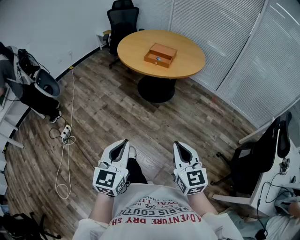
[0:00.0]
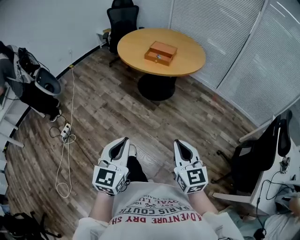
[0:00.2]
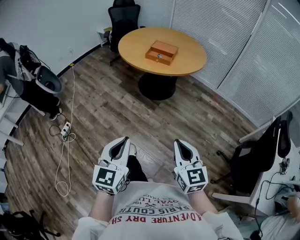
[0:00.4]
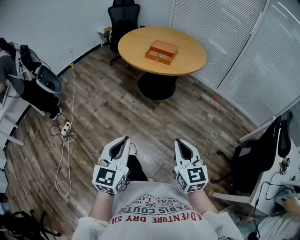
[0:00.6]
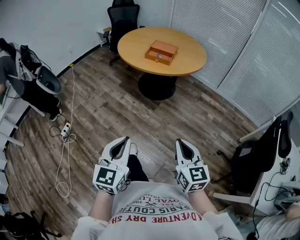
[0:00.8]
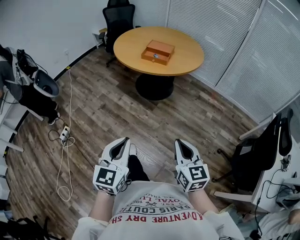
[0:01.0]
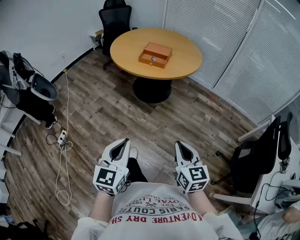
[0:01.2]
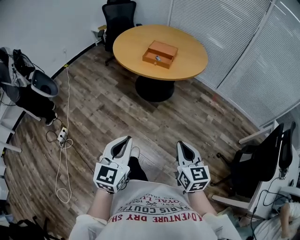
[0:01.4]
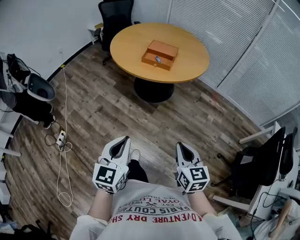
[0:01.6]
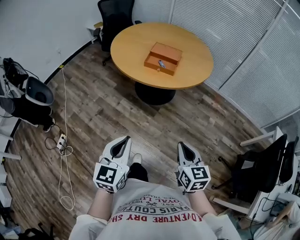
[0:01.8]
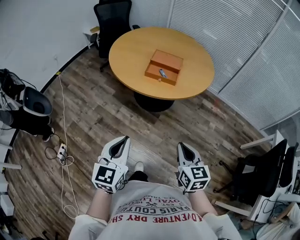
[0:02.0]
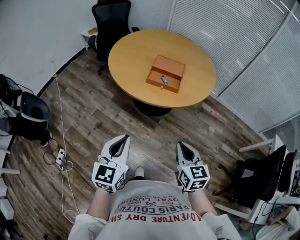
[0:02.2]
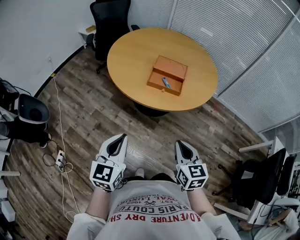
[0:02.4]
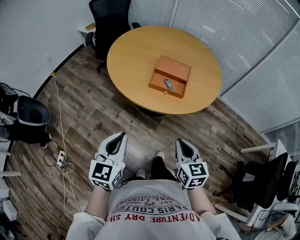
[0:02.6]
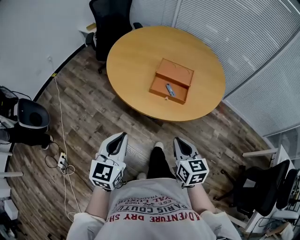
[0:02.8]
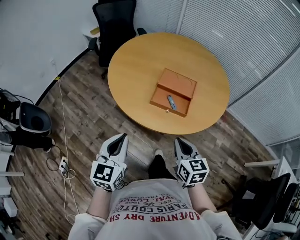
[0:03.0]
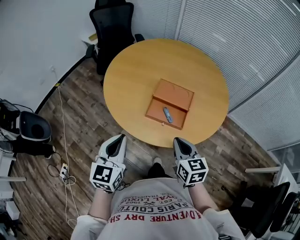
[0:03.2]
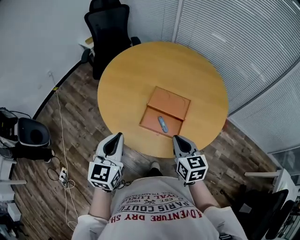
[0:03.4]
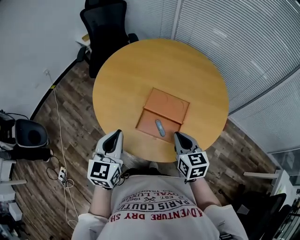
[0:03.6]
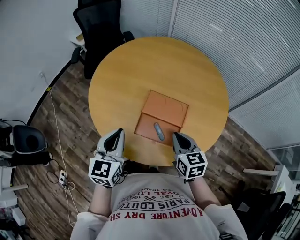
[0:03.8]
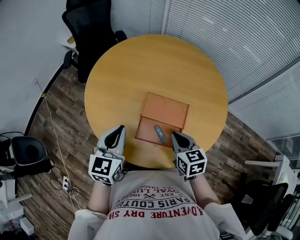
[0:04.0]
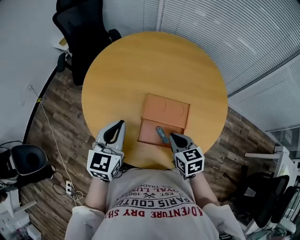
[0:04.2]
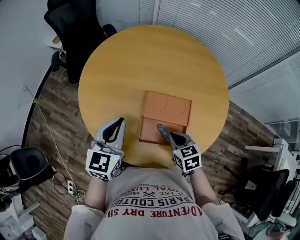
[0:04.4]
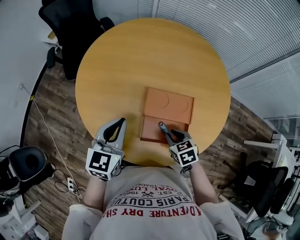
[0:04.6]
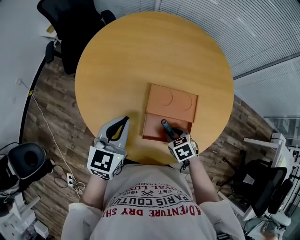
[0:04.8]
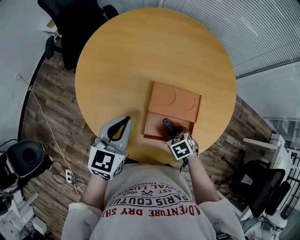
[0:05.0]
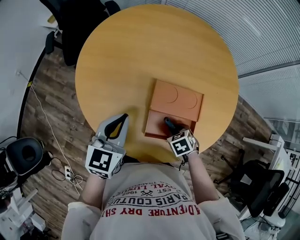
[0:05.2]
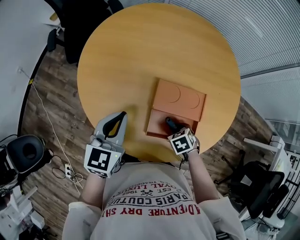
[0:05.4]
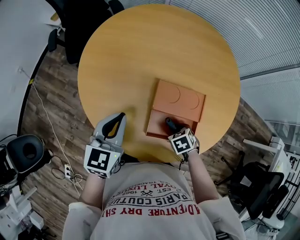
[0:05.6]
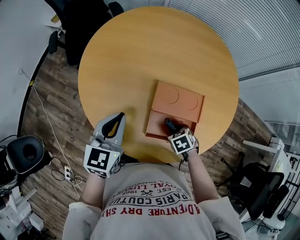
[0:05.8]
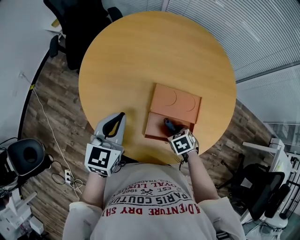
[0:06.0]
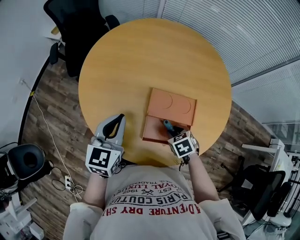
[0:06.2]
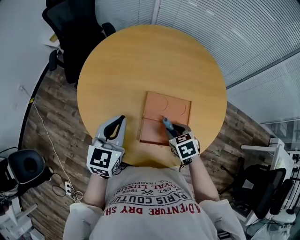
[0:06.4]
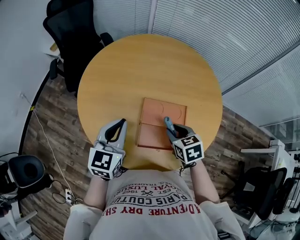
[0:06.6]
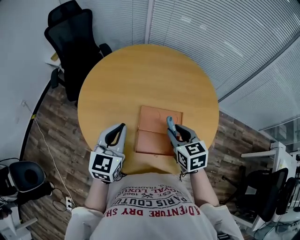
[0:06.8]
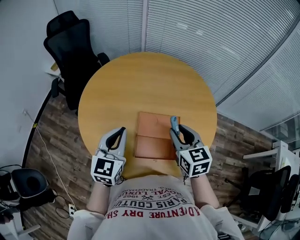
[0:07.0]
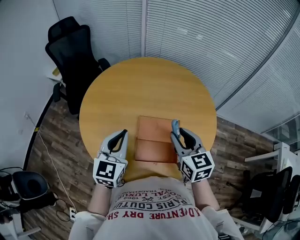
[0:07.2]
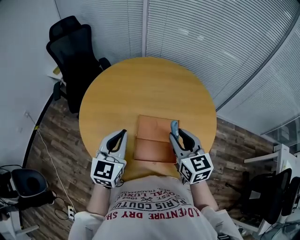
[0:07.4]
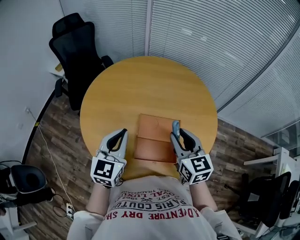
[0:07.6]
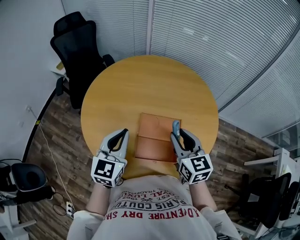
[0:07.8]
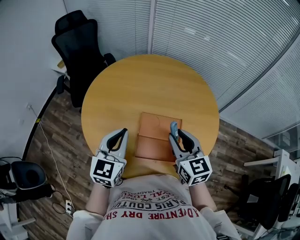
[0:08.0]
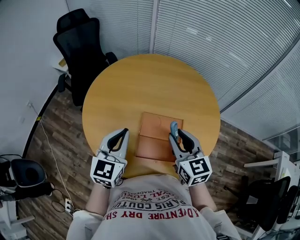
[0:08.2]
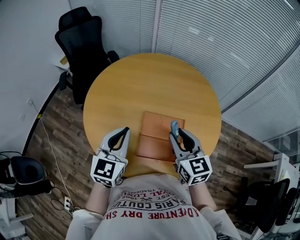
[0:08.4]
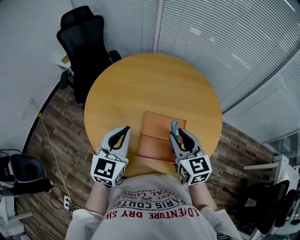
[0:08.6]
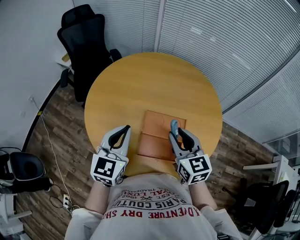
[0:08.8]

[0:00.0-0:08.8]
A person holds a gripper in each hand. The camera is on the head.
0:00.0 to 0:01.4: The two grippers go about 10 cm forward.
0:01.4 to 0:03.0: The two grippers travel together, forward, approximately 50 cm.
0:03.0 to 0:04.4: The two grippers go approximately 30 cm forward. The right gripper swivels approximately 20 degrees.
0:04.4 to 0:05.8: The left gripper shifts by roughly 5 cm, while the right gripper shifts approximately 15 cm downward, turns by roughly 30 degrees, and opens up.
0:05.8 to 0:07.4: The left gripper shifts some 10 cm upward, while the right gripper goes roughly 30 cm upward, and tips its fingers upward by roughly 60 degrees.
0:07.4 to 0:08.8: The grippers stay close to where they were, moving slightly.

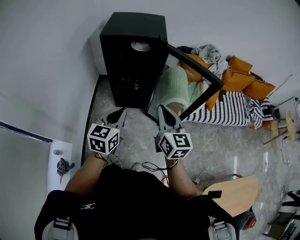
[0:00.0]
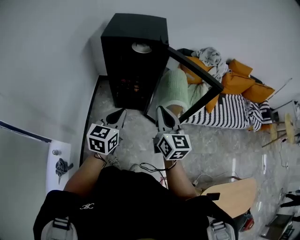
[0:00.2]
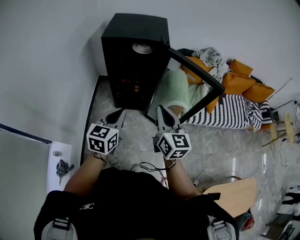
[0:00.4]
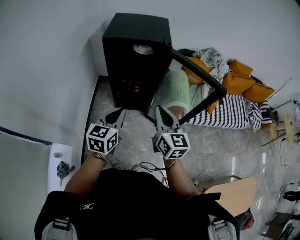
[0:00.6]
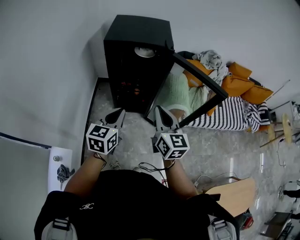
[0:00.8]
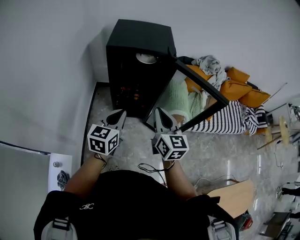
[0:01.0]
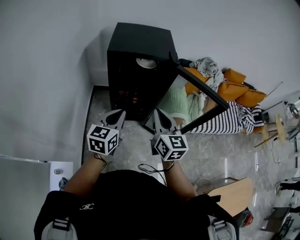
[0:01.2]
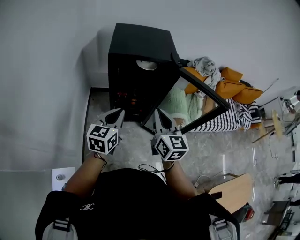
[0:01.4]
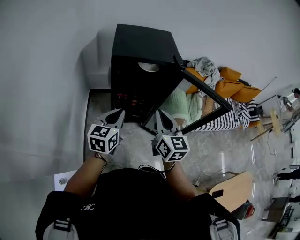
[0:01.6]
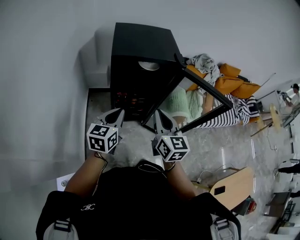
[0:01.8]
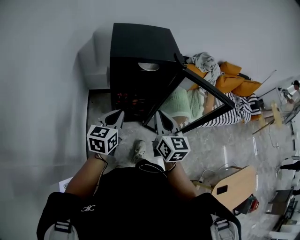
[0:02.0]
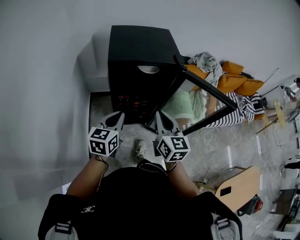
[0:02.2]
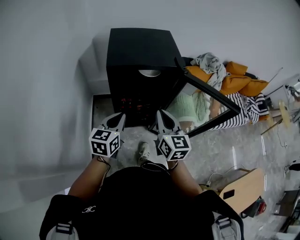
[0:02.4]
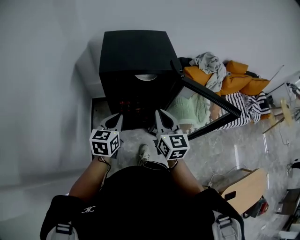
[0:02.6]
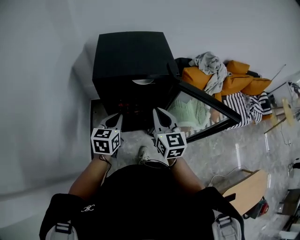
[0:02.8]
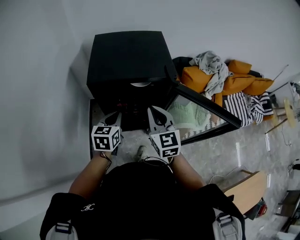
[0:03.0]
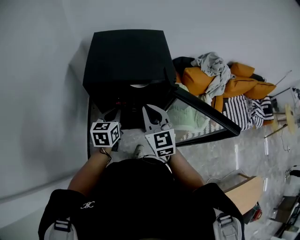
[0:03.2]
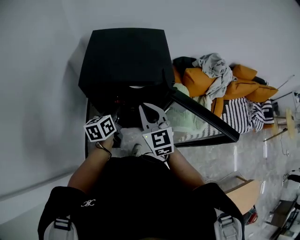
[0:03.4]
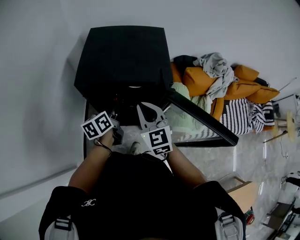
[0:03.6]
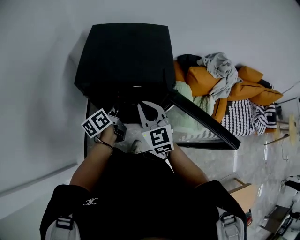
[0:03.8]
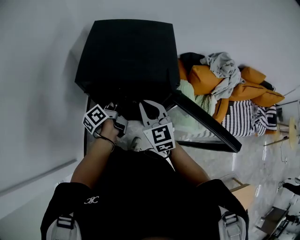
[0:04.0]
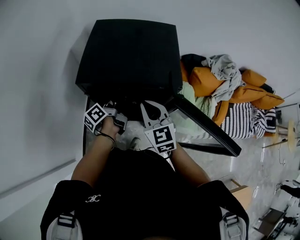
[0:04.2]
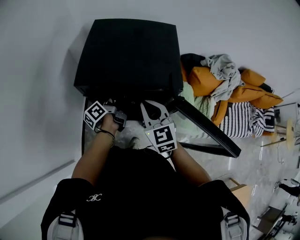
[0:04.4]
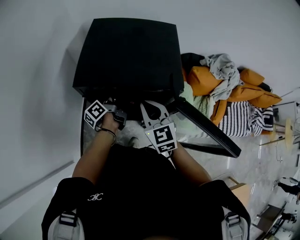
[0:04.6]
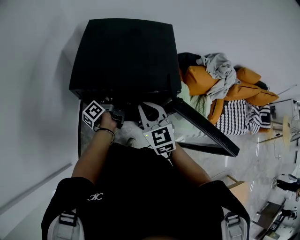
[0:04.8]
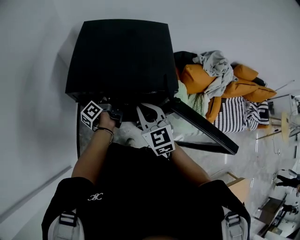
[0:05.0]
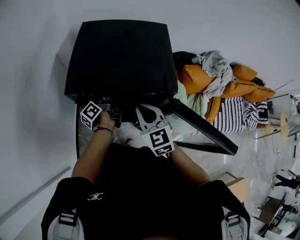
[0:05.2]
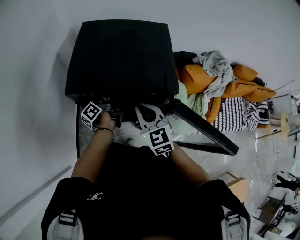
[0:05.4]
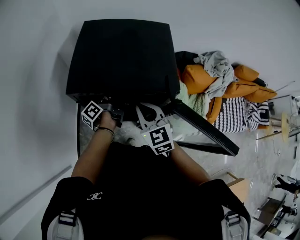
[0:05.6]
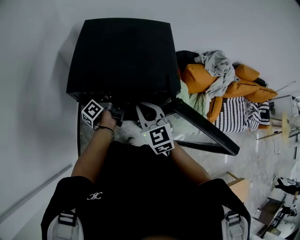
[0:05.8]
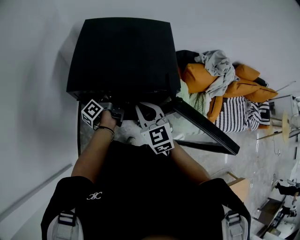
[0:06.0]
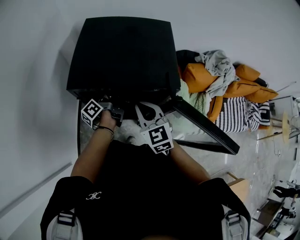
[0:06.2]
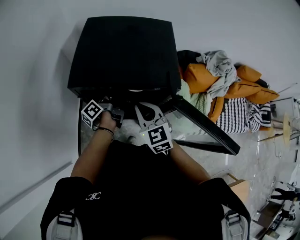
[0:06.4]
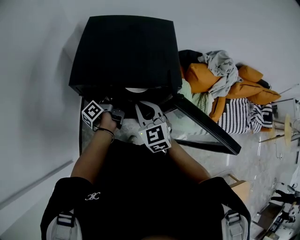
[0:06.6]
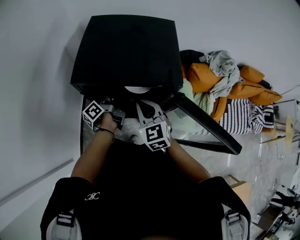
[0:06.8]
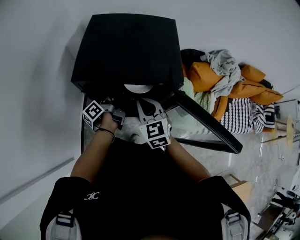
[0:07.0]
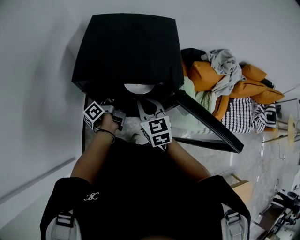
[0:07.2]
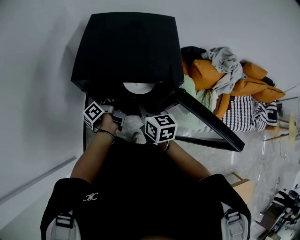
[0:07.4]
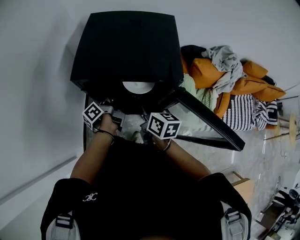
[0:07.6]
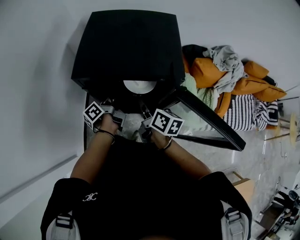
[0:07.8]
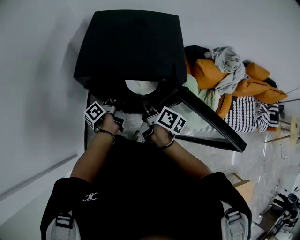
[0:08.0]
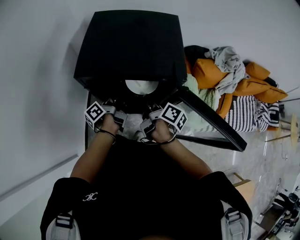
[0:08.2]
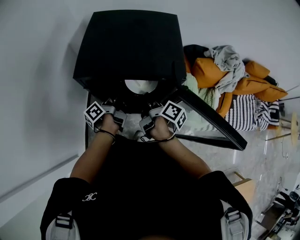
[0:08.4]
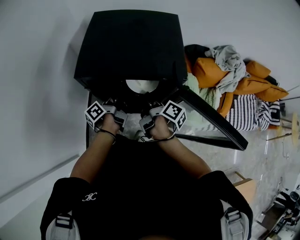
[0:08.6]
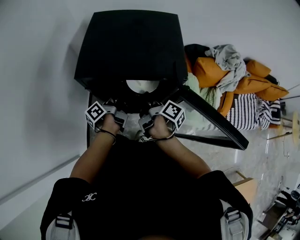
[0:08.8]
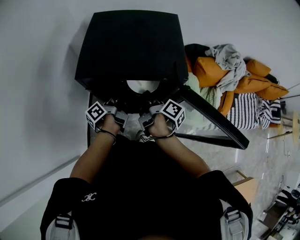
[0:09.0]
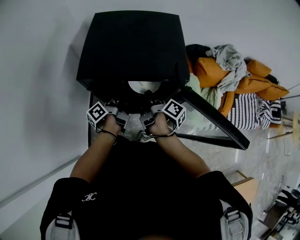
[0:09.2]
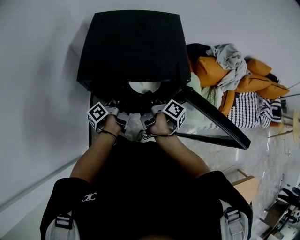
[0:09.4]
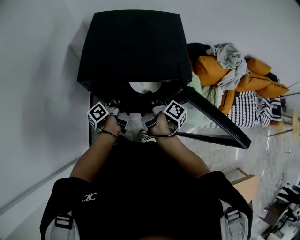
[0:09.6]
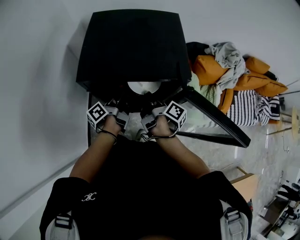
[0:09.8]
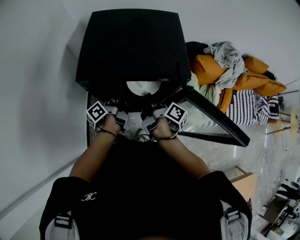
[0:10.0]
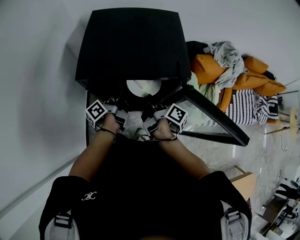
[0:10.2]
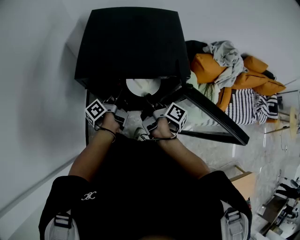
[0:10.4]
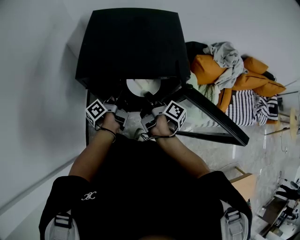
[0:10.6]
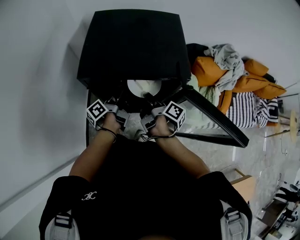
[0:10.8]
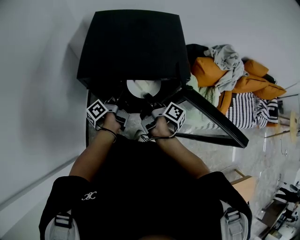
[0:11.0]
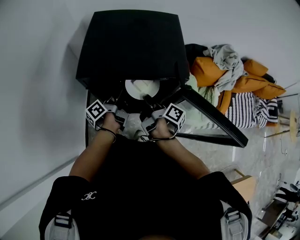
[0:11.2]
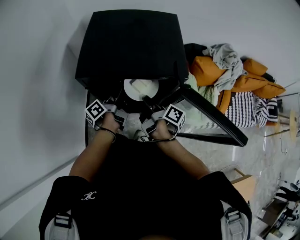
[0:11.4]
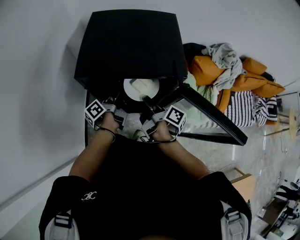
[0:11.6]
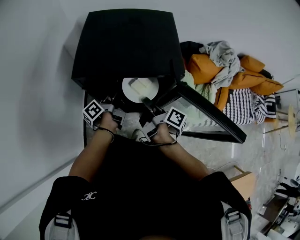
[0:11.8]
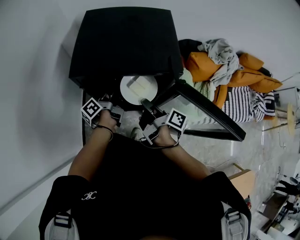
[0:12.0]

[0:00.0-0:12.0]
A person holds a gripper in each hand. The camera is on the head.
0:00.0 to 0:01.6: Both grippers move to the left and forward, approximately 20 cm.
0:01.6 to 0:03.0: The grippers both shift forward by about 20 cm.
0:03.0 to 0:04.4: The right gripper goes approximately 10 cm forward. Meanwhile the left gripper shifts roughly 15 cm forward and downward, and rotates around the line of its fingers by about 70 degrees, counterclockwise from behind.
0:04.4 to 0:06.0: The grippers make only small movements.
0:06.0 to 0:07.6: The right gripper rotates around the line of its fingers by about 50 degrees, clockwise from behind; the left gripper moves backward, roughly 5 cm.
0:07.6 to 0:09.0: The right gripper shifts by roughly 5 cm, and rotates around the line of its fingers by approximately 50 degrees, clockwise from behind.
0:09.0 to 0:10.4: The grippers make only small movements.
0:10.4 to 0:12.0: The right gripper ends up approximately 5 cm from where it was.

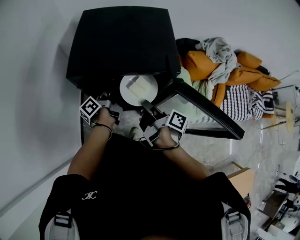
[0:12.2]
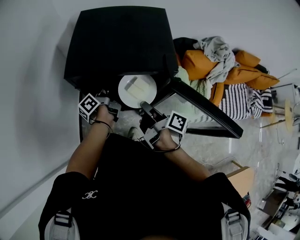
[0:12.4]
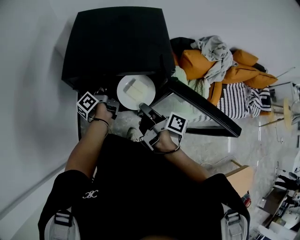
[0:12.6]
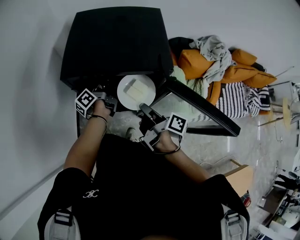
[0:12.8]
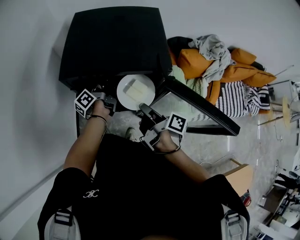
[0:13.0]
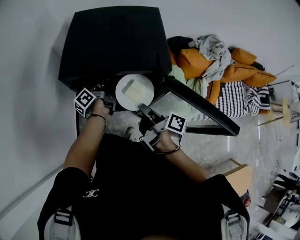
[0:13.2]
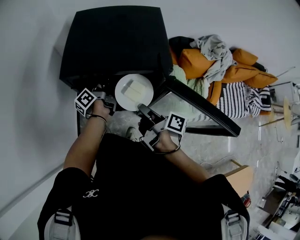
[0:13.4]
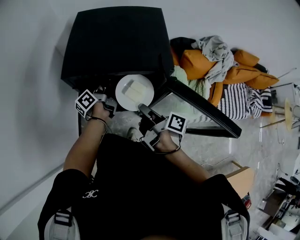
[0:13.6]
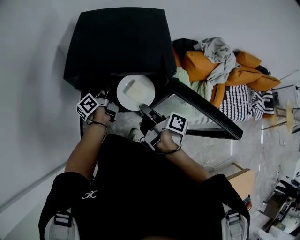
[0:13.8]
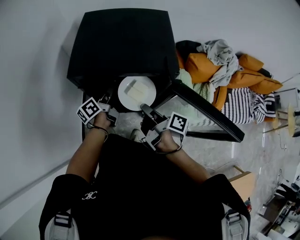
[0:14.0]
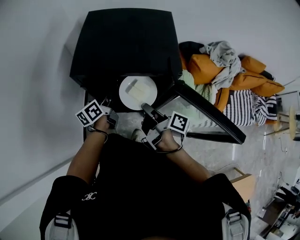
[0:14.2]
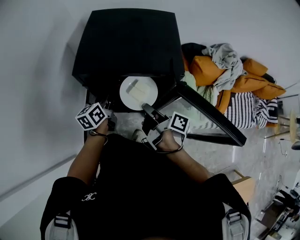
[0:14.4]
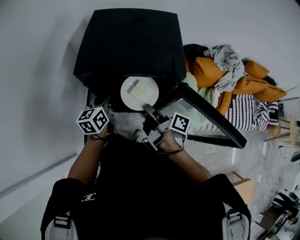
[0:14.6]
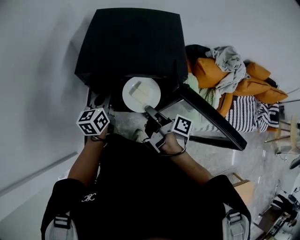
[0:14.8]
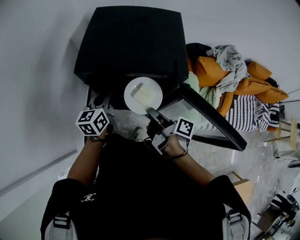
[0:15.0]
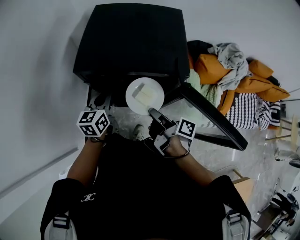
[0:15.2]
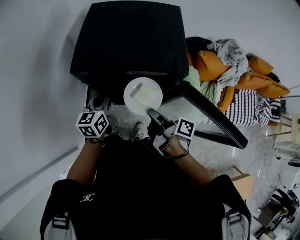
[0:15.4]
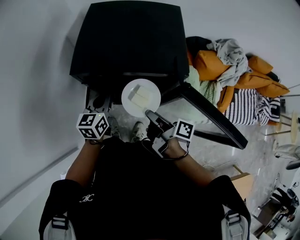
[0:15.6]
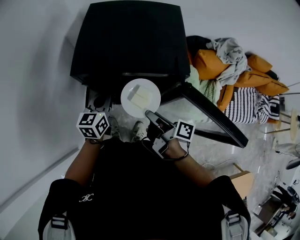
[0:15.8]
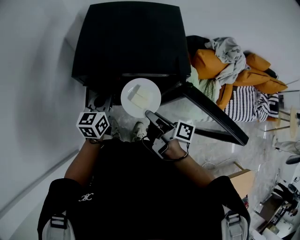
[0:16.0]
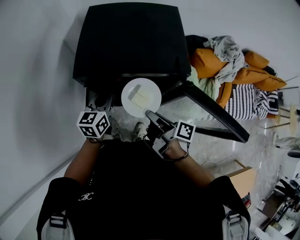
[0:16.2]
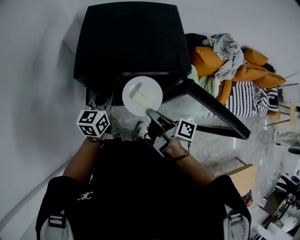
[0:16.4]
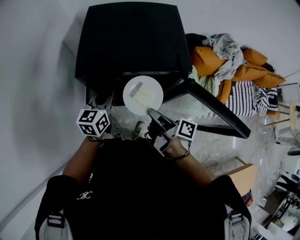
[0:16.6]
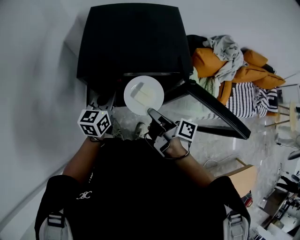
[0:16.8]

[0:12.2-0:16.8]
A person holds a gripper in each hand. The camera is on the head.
0:12.2 to 0:13.8: The grippers move only a little.
0:13.8 to 0:15.2: The left gripper moves backward, roughly 5 cm, twists about 50 degrees clockwise, seen from behind, and closes its fingers.
0:15.2 to 0:16.8: There are only small adjustments of the grippers.
